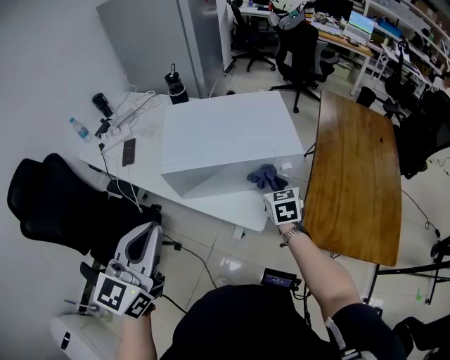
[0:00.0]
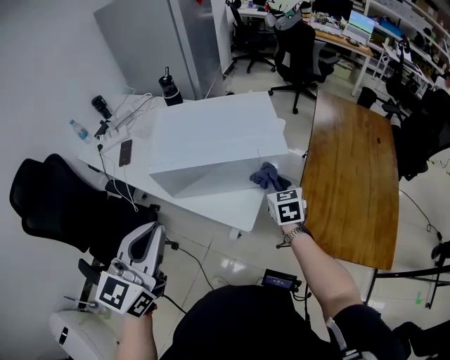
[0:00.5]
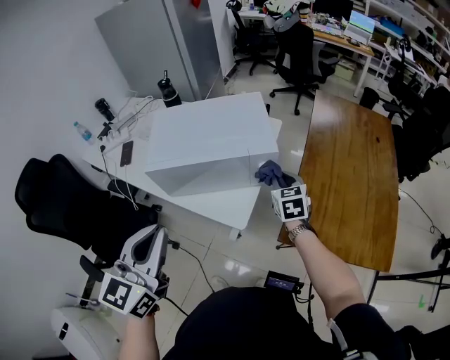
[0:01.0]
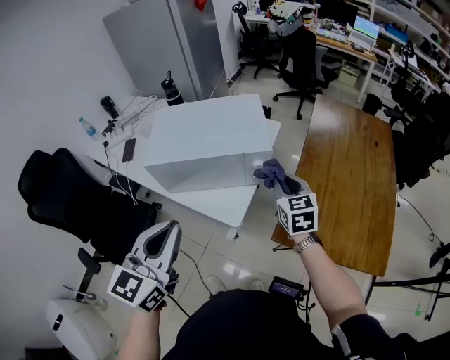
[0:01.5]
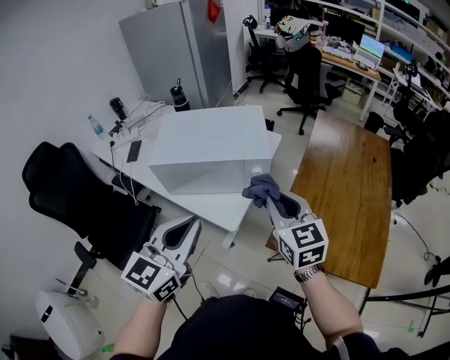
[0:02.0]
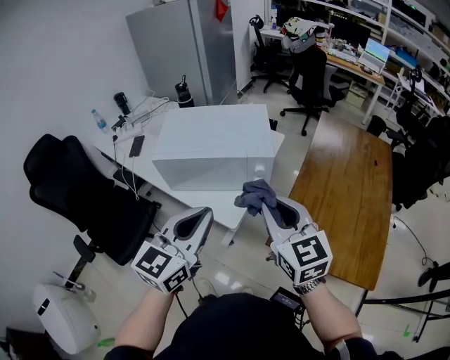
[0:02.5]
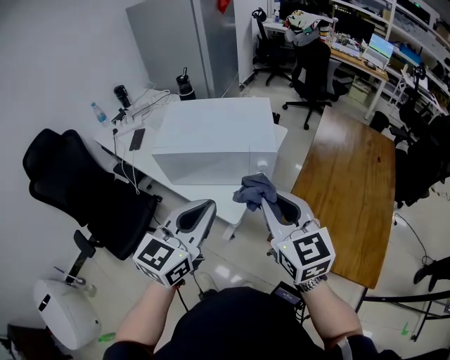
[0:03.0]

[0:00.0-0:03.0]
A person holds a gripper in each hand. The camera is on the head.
0:00.0 to 0:01.5: The right gripper heads to the right and upward, covering roughly 15 cm, while the left gripper travels to the right by approximately 15 cm.
0:01.5 to 0:03.0: The right gripper is displaced upward, backward and to the left by roughly 20 cm, and changes its angle by roughly 20 degrees. The left gripper travels to the right by roughly 5 cm.

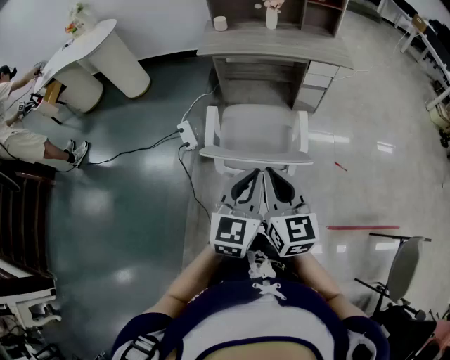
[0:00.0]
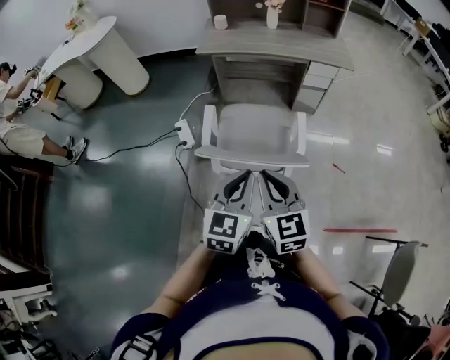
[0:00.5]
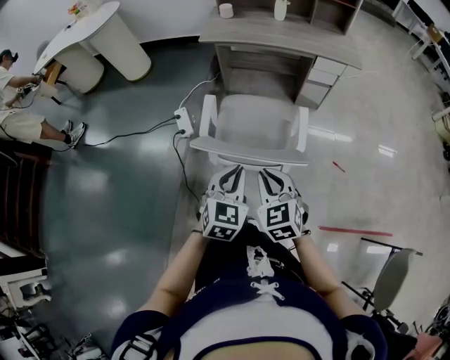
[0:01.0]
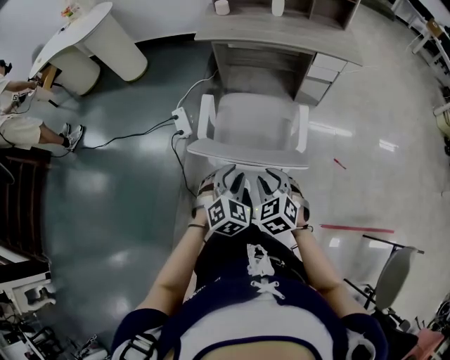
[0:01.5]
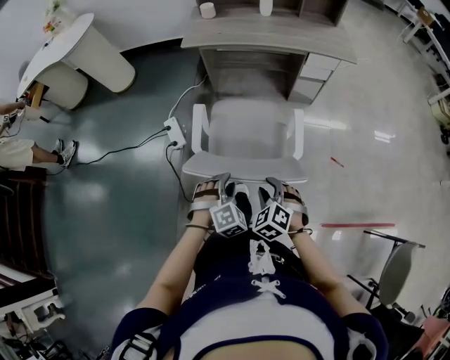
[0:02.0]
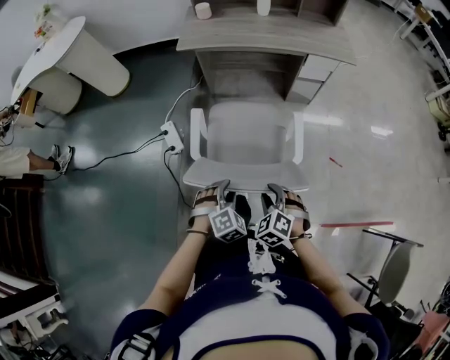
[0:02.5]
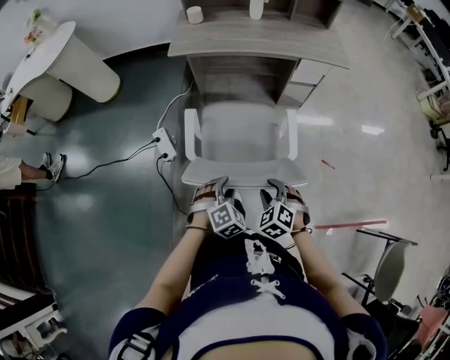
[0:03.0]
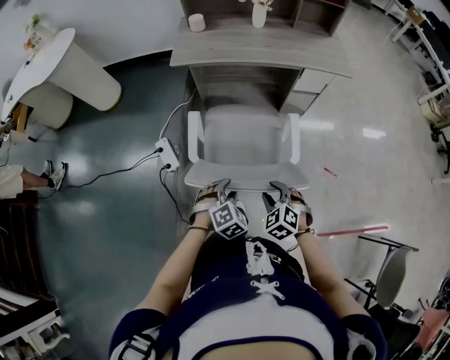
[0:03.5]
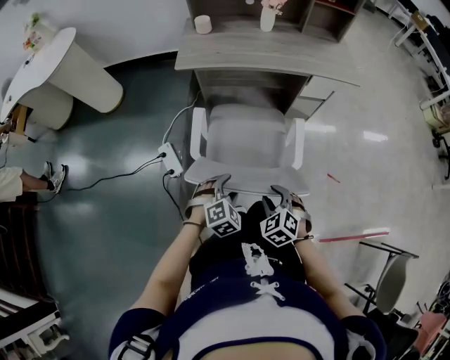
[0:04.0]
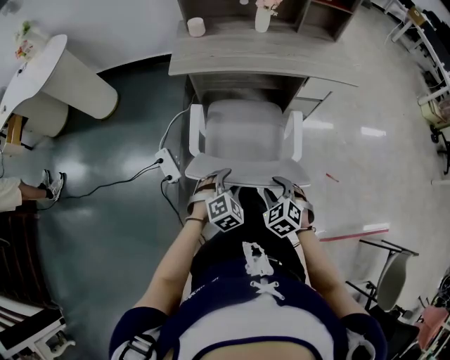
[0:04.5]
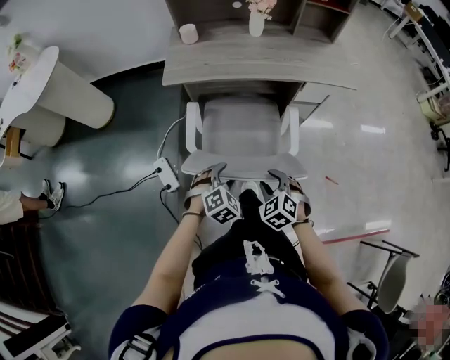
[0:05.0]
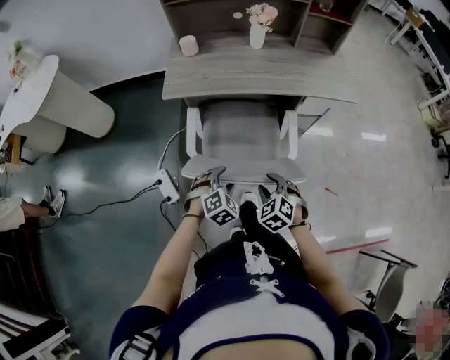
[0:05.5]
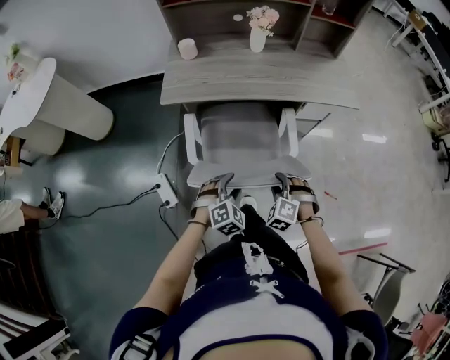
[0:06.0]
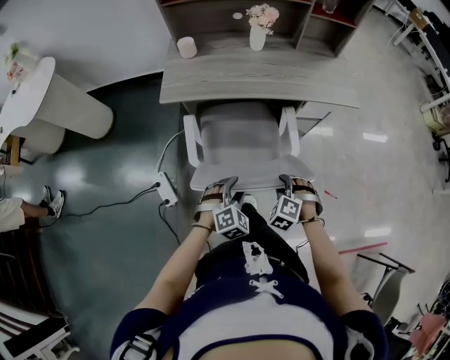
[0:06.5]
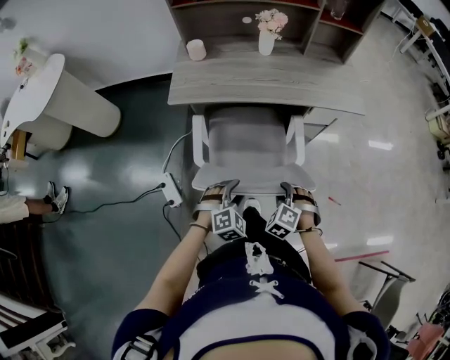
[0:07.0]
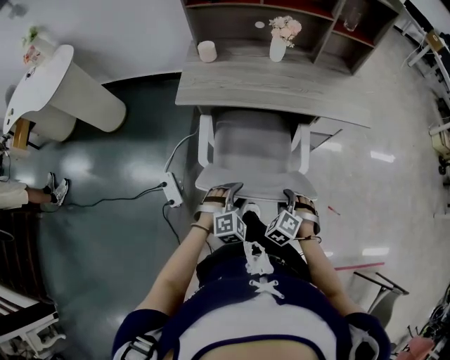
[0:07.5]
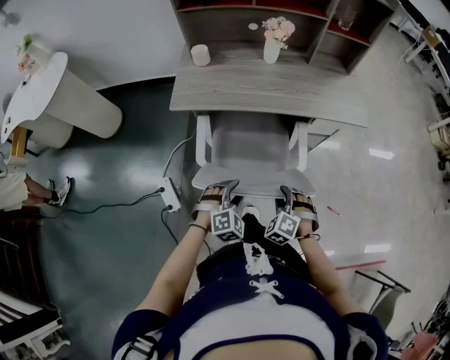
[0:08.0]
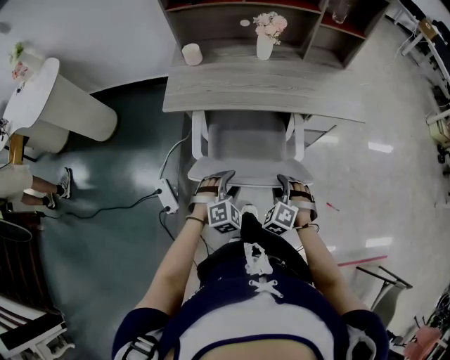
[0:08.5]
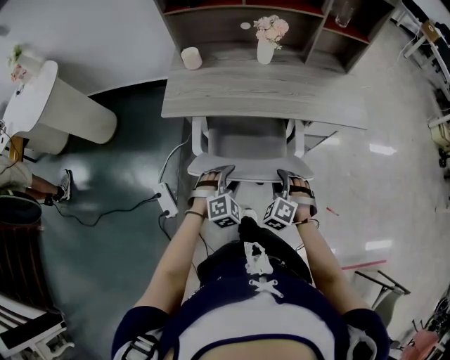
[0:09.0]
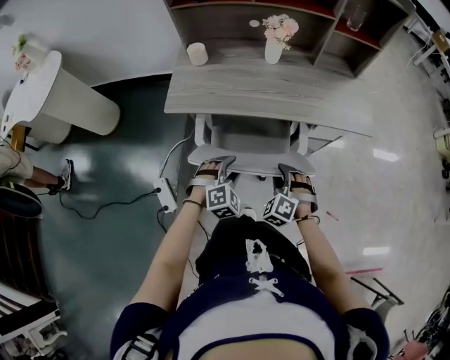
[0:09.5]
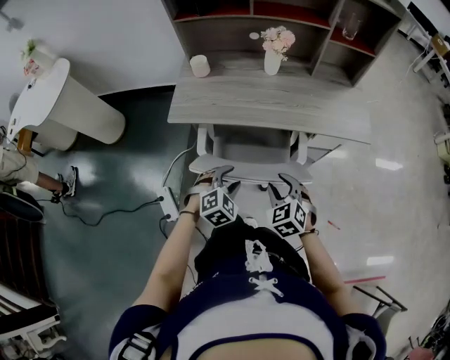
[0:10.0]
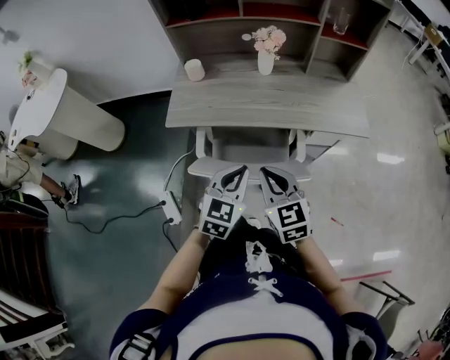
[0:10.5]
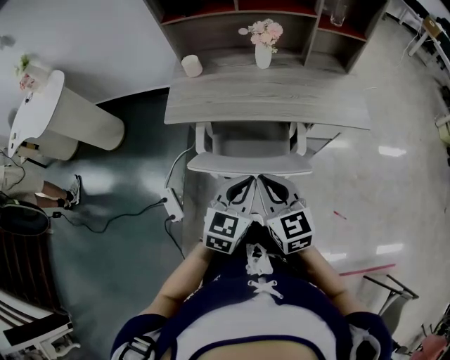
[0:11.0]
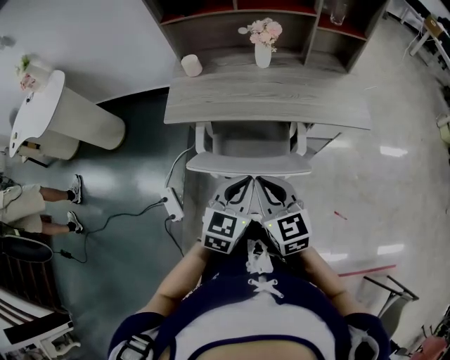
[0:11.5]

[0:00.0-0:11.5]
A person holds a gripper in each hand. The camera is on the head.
0:00.0 to 0:02.0: Both grippers move downward, about 25 cm. The right gripper points its fingers about 40 degrees further downward, and opens; the left gripper points its fingers roughly 40 degrees further downward, and opens.
0:02.0 to 0:04.0: The two grippers go about 15 cm forward.
0:04.0 to 0:06.0: Both grippers move forward, some 20 cm. The right gripper turns by roughly 20 degrees.
0:06.0 to 0:07.5: The grippers stay close to where they were, moving slightly.
0:07.5 to 0:09.5: Both grippers travel together forward, approximately 15 cm.
0:09.5 to 0:11.5: The grippers both shift upward by some 20 cm. The left gripper rotates around the line of its fingers by about 50 degrees, counterclockwise from behind, and closes its fingers, while the right gripper twists roughly 60 degrees clockwise, seen from behind, and closes.

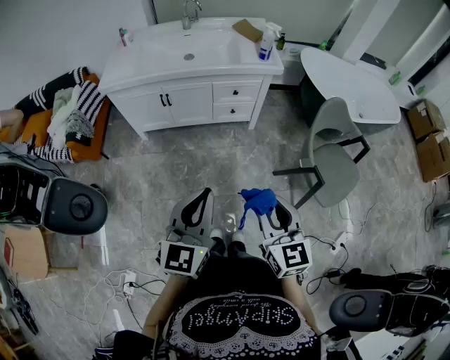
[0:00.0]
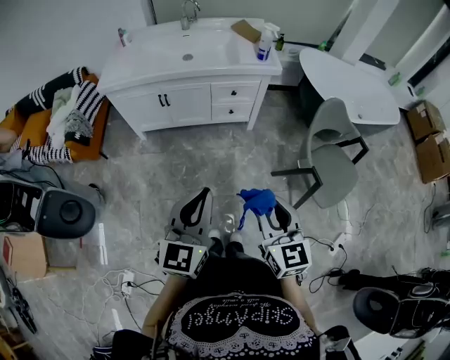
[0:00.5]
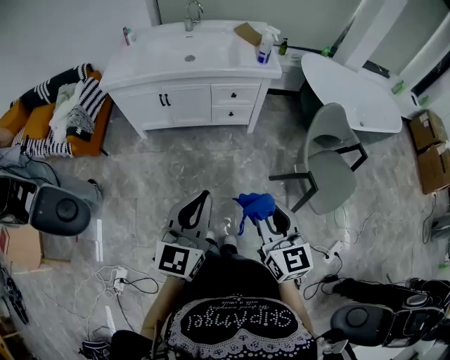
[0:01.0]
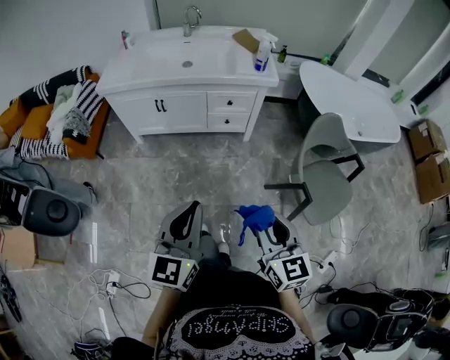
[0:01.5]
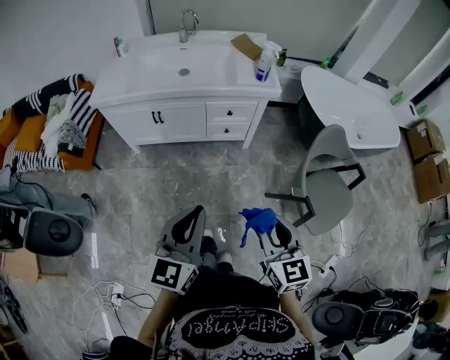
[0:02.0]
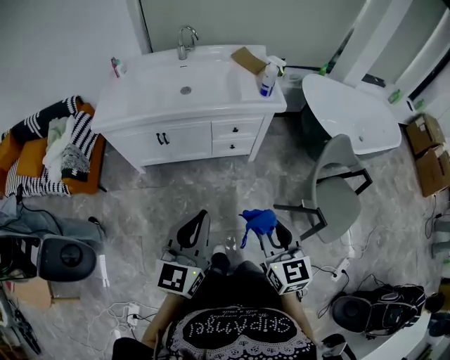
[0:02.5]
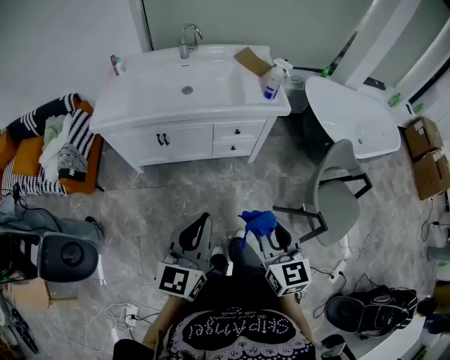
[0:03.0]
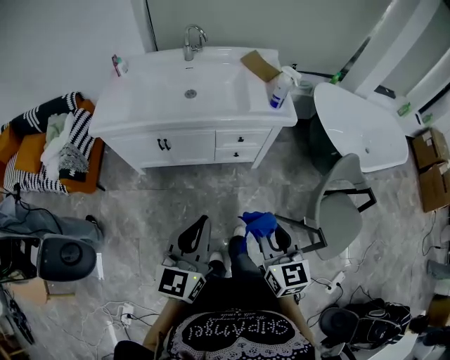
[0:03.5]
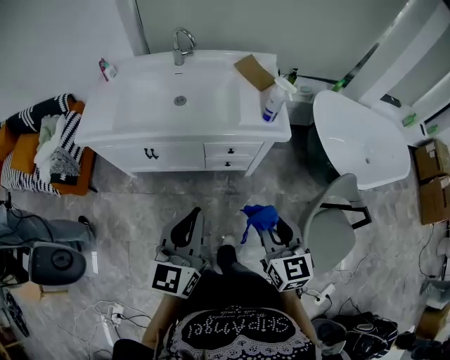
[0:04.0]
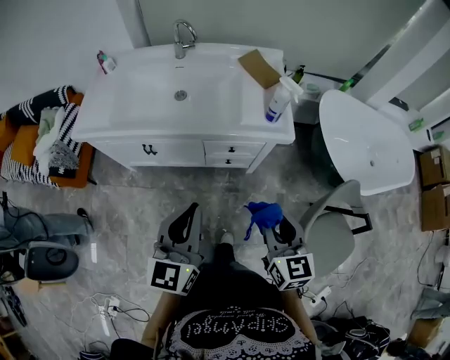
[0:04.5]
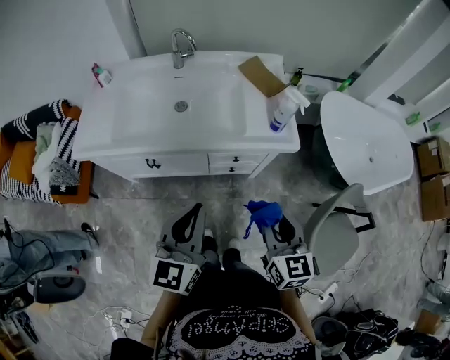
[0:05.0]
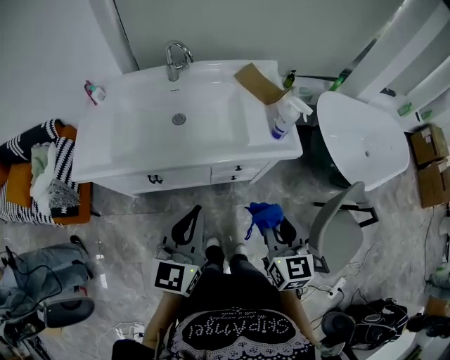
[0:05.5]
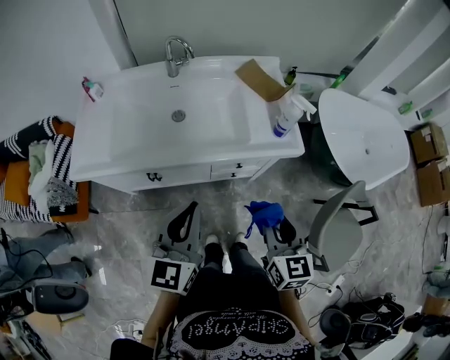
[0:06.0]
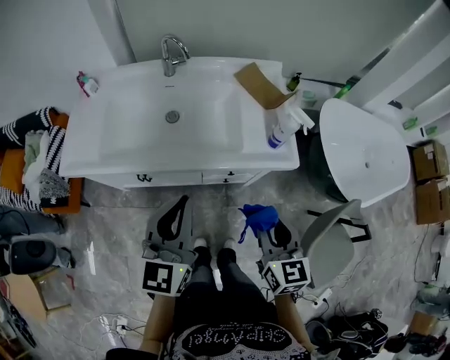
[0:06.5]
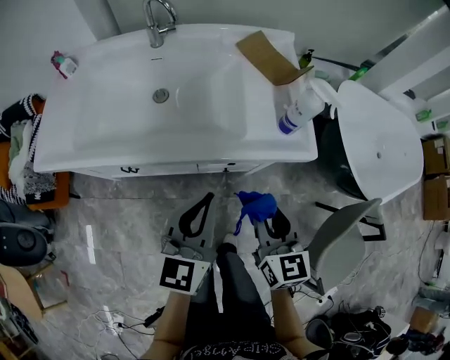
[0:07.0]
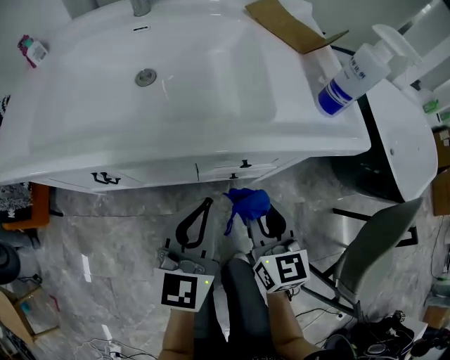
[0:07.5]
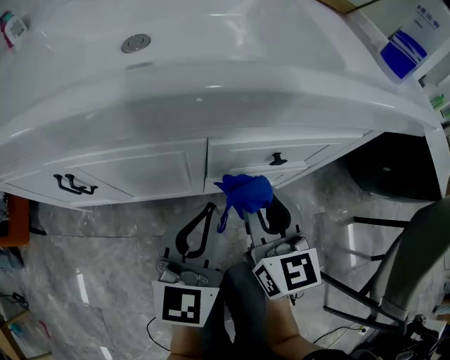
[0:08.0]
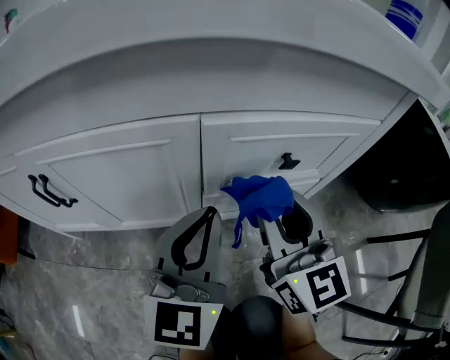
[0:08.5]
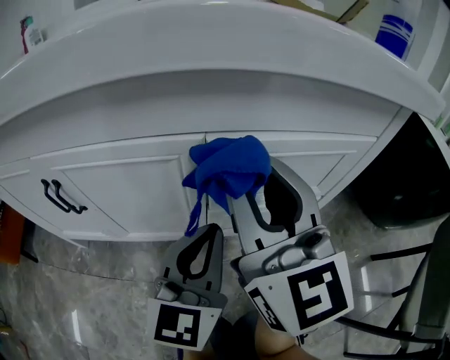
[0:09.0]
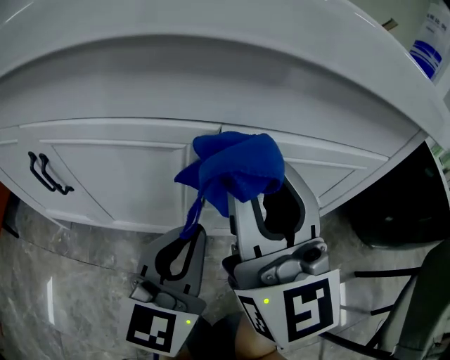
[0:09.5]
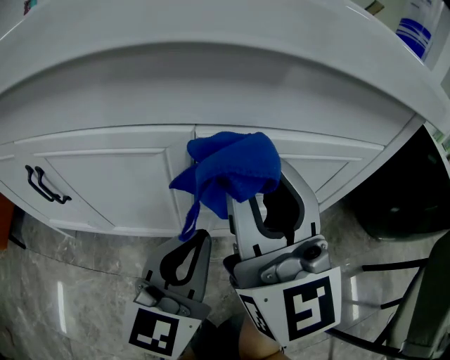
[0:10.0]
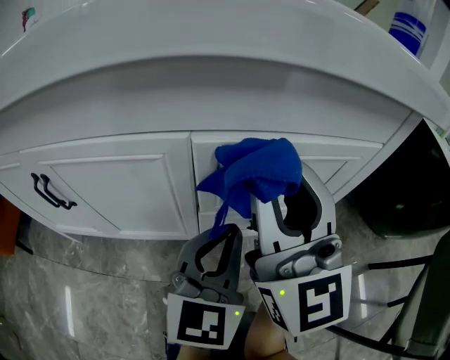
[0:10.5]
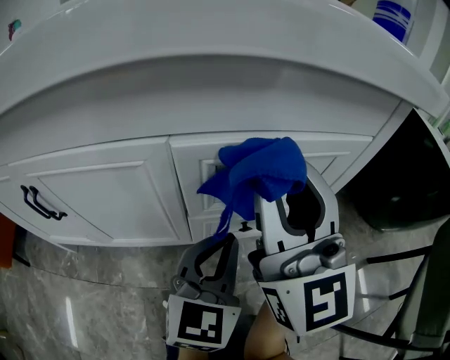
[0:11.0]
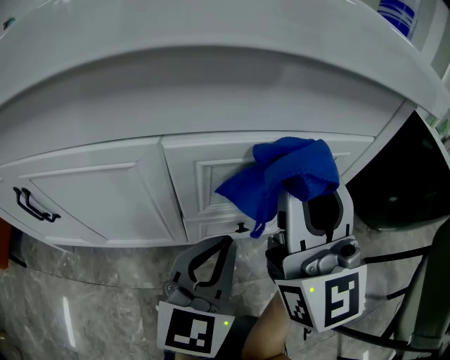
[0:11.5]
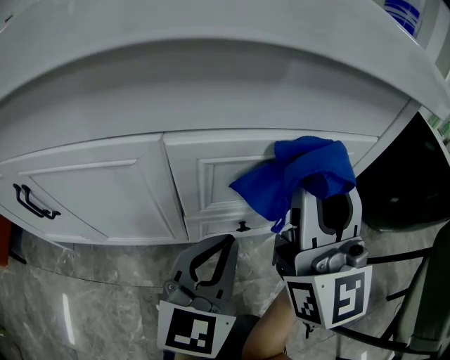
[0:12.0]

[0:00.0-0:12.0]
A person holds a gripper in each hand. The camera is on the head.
0:00.0 to 0:02.0: The right gripper shifts approximately 10 cm forward and to the right, while the left gripper is displaced forward by roughly 5 cm.
0:02.0 to 0:04.0: The grippers both shift forward by approximately 25 cm.
0:04.0 to 0:06.0: Both grippers travel together forward and to the left, about 15 cm.
0:06.0 to 0:08.0: The left gripper travels downward by roughly 50 cm, while the right gripper goes approximately 50 cm downward and forward.
0:08.0 to 0:10.0: The left gripper shifts approximately 5 cm downward; the right gripper heads upward, covering about 10 cm, and swivels about 30 degrees.
0:10.0 to 0:12.0: The right gripper heads to the right, covering roughly 10 cm, while the left gripper shifts approximately 5 cm to the right.
